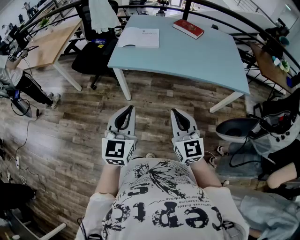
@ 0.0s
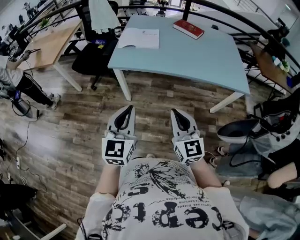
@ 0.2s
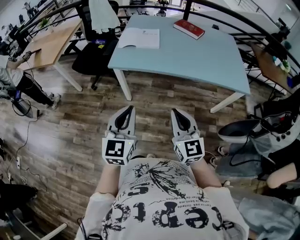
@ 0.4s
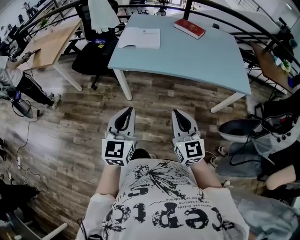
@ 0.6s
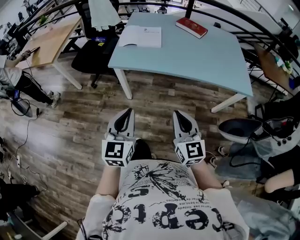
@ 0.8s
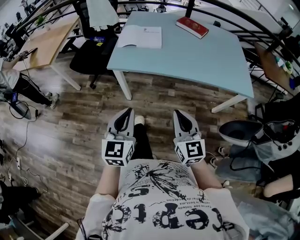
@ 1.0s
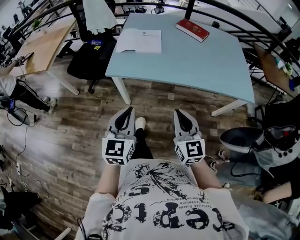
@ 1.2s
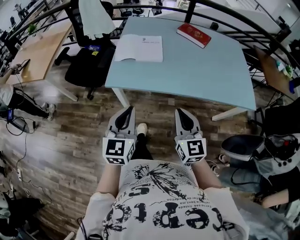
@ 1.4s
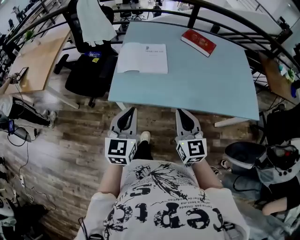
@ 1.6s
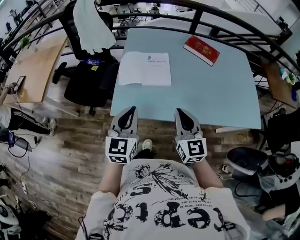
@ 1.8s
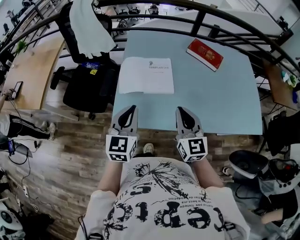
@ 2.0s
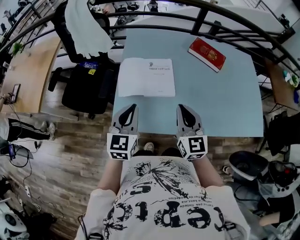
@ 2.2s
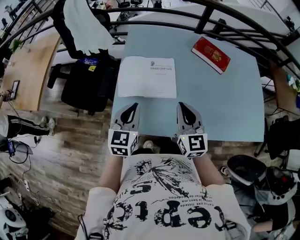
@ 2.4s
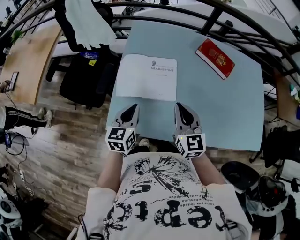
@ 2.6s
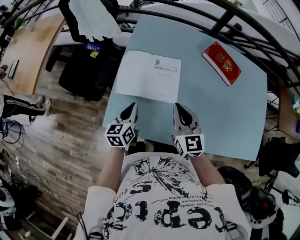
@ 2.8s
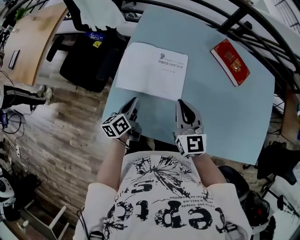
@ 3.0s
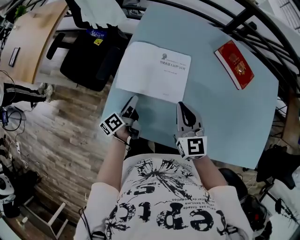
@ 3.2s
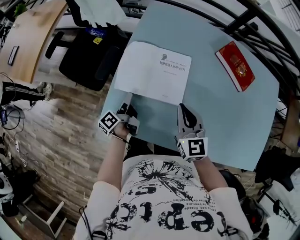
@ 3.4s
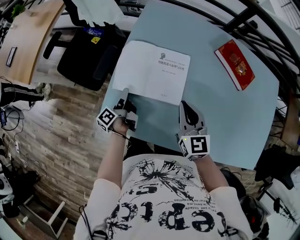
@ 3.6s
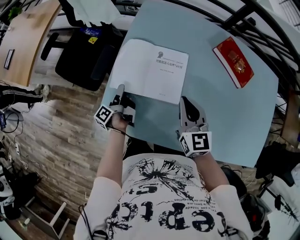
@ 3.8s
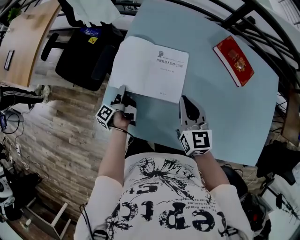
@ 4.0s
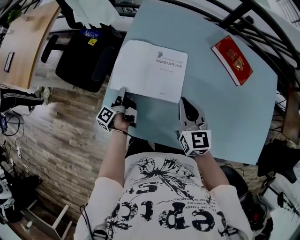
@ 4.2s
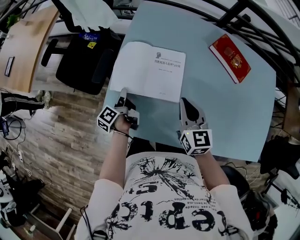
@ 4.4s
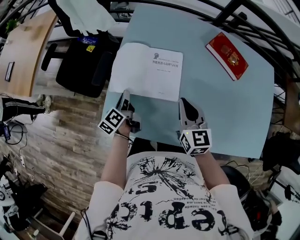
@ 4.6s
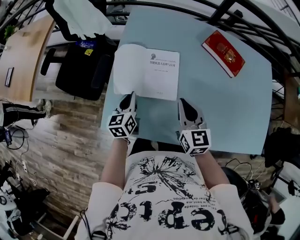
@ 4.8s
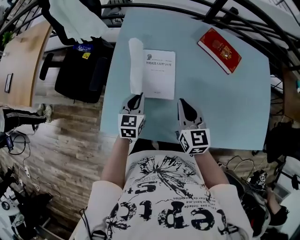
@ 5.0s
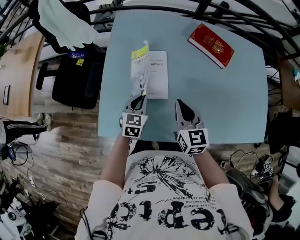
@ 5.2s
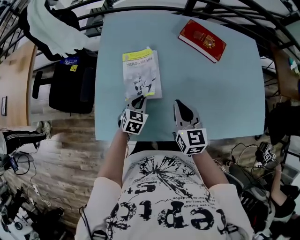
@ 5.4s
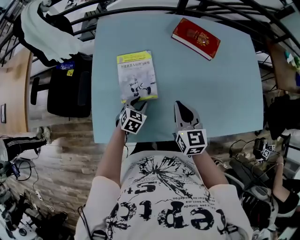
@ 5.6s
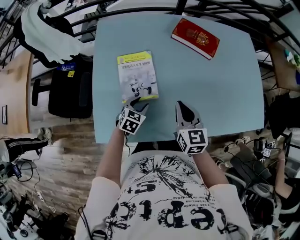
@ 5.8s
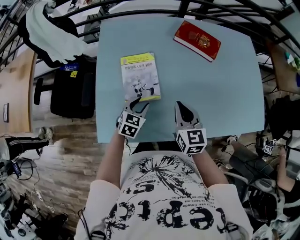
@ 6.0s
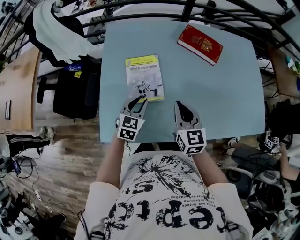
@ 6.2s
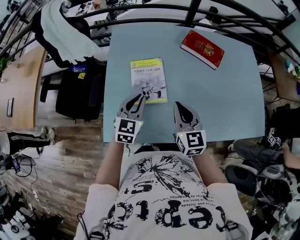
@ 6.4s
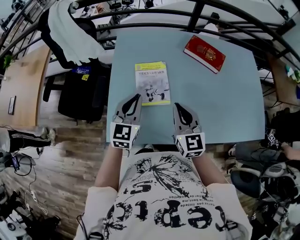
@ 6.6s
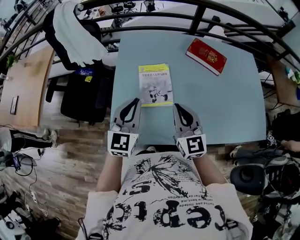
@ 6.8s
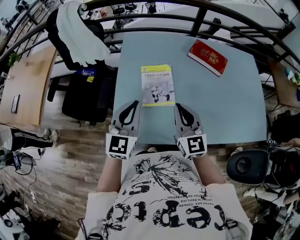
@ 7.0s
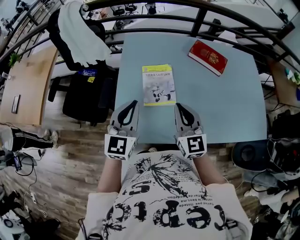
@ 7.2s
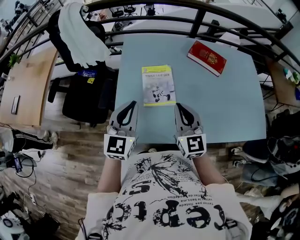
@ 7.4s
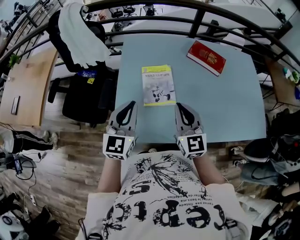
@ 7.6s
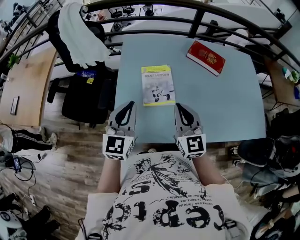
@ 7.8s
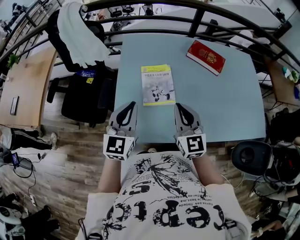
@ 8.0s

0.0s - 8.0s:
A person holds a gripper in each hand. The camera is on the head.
0.0s - 1.6s: The two grippers go approximately 30 cm forward.
1.6s - 3.2s: The right gripper shifts approximately 35 cm forward; the left gripper is displaced forward and downward by some 40 cm, twists some 70 degrees counterclockwise, seen from behind, and opens.
3.2s - 4.8s: The left gripper moves approximately 5 cm, rotates around the line of its fingers by about 50 degrees, clockwise from behind, and closes.
4.8s - 6.4s: The right gripper reaches roughly 10 cm to the right, then returns. The left gripper travels upward and to the right by about 15 cm, changes its angle by about 40 degrees, and opens, then closes once more.
6.4s - 8.0s: The right gripper is displaced to the left and upward by approximately 10 cm. The left gripper travels upward, to the left and backward by about 15 cm.

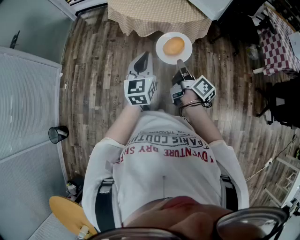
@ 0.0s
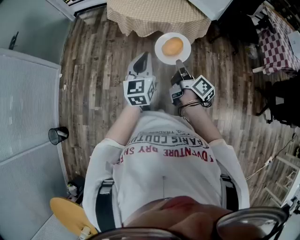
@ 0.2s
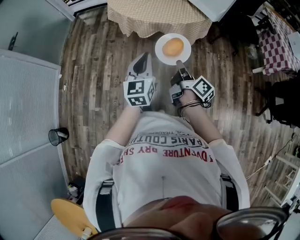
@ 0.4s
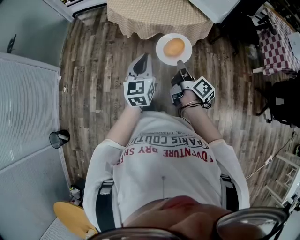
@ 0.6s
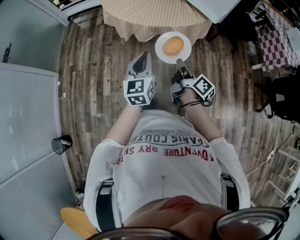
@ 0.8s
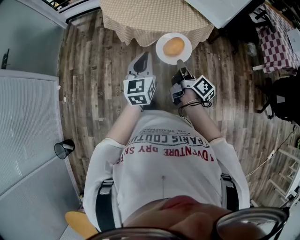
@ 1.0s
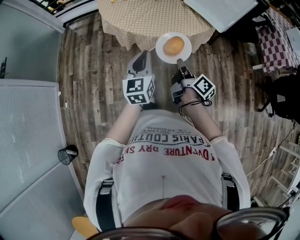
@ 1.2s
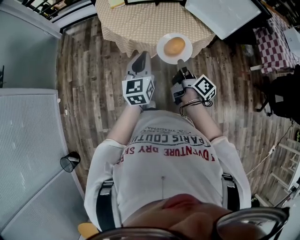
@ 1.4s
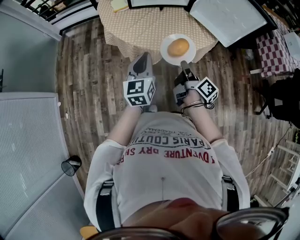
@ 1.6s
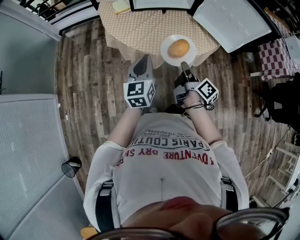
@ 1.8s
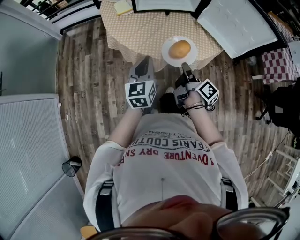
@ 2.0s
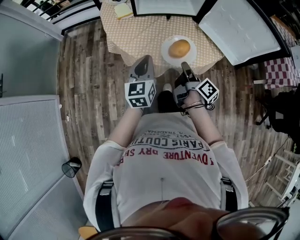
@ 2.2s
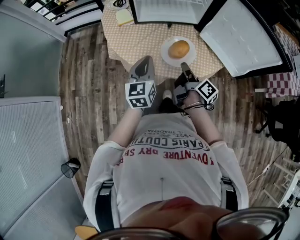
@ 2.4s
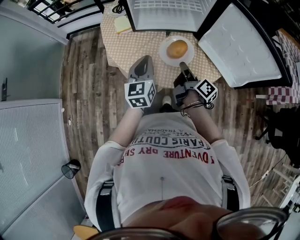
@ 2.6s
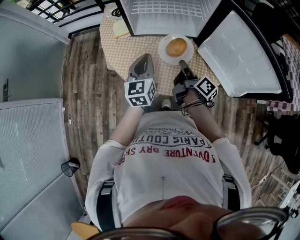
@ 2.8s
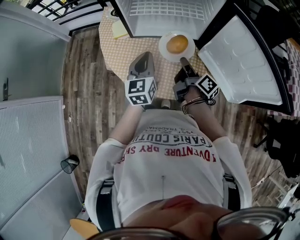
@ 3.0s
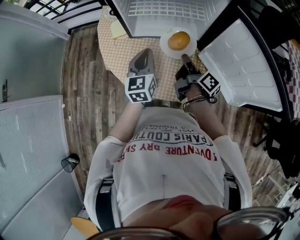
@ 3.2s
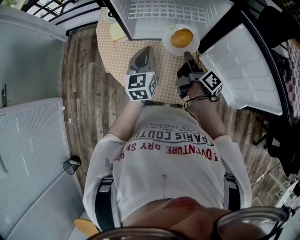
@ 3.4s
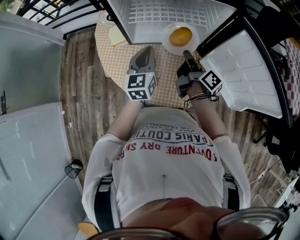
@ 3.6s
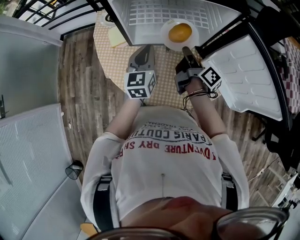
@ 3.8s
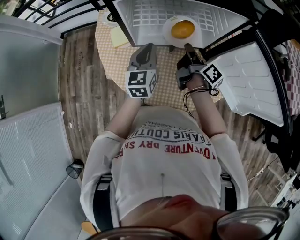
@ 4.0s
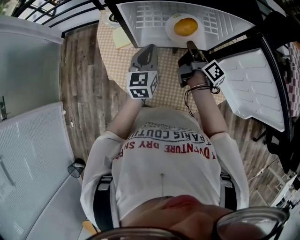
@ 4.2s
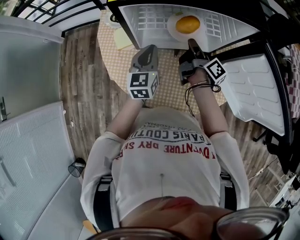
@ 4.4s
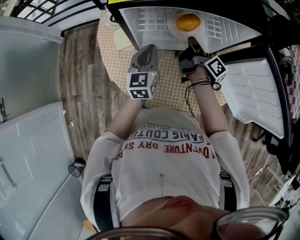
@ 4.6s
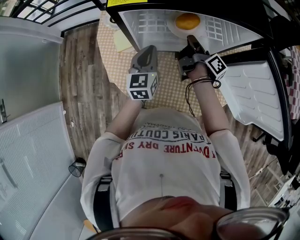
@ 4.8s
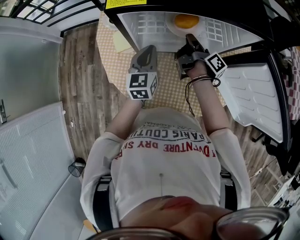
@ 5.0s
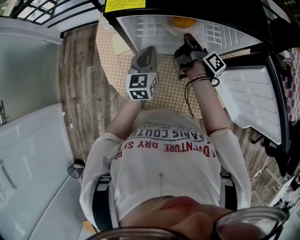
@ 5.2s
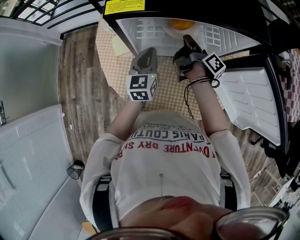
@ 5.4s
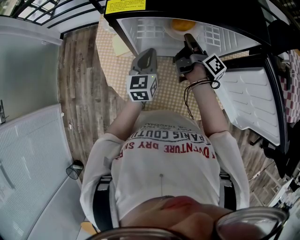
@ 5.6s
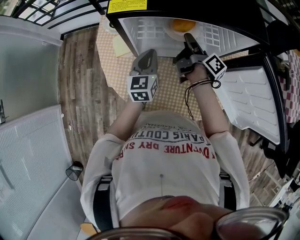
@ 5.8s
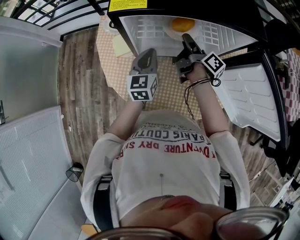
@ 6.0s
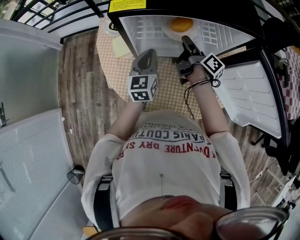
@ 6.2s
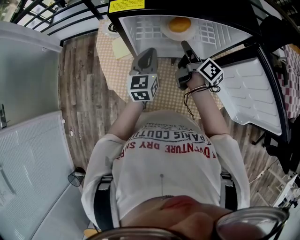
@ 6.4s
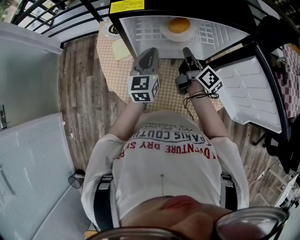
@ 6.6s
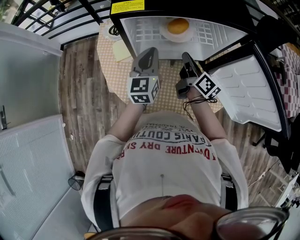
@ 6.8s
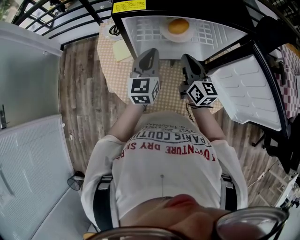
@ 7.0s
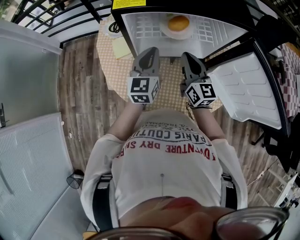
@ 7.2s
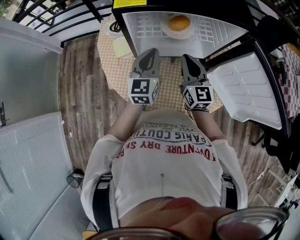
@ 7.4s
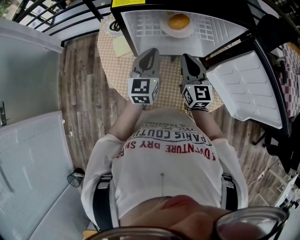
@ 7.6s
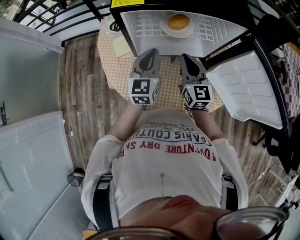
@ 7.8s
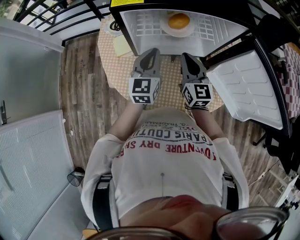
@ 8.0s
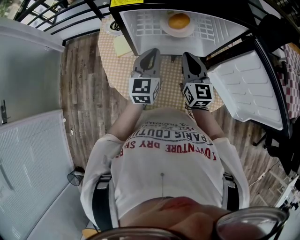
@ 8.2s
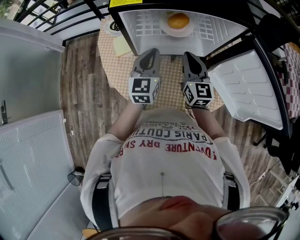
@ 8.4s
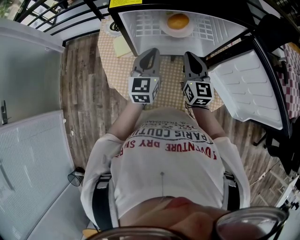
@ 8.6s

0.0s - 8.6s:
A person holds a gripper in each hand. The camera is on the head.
0.0s - 1.4s: The grippers both shift forward and to the left by some 25 cm.
1.4s - 2.8s: The two grippers go some 30 cm forward.
2.8s - 4.4s: Both grippers move forward, about 20 cm.
4.4s - 5.8s: The right gripper ends up some 5 cm from where it was, and opens its fingers.
5.8s - 7.2s: The right gripper is displaced backward and upward by about 10 cm, rotates around the line of its fingers by about 70 degrees, counterclockwise from behind, and closes its fingers, while the left gripper moves upward, approximately 5 cm.
7.2s - 8.6s: The grippers stay close to where they were, moving slightly.

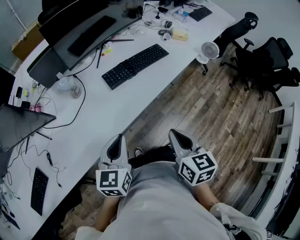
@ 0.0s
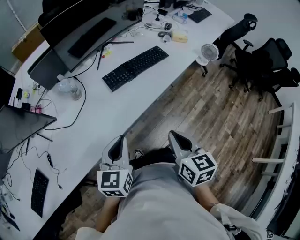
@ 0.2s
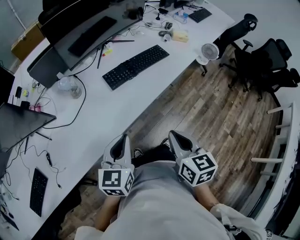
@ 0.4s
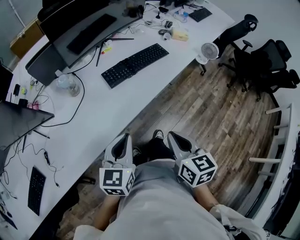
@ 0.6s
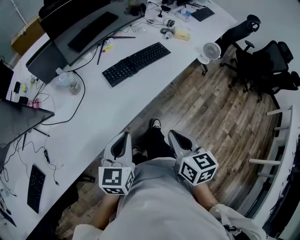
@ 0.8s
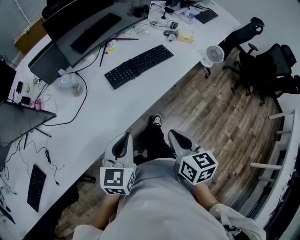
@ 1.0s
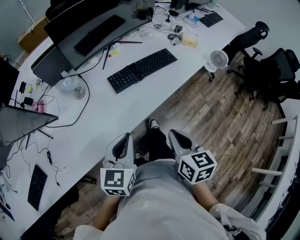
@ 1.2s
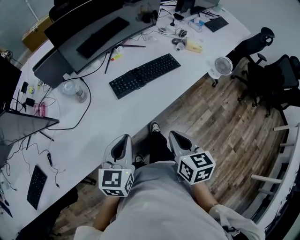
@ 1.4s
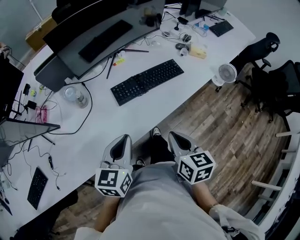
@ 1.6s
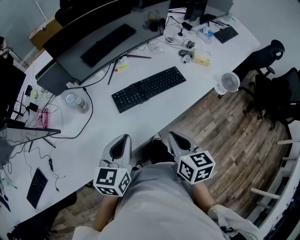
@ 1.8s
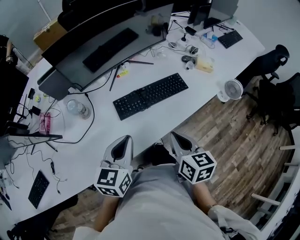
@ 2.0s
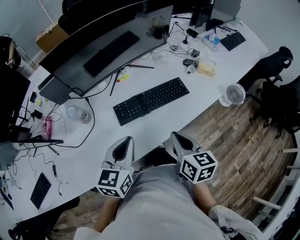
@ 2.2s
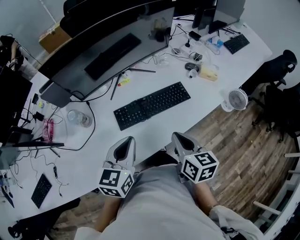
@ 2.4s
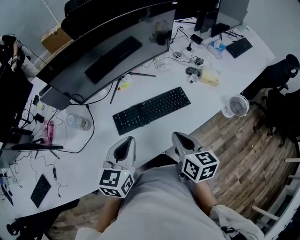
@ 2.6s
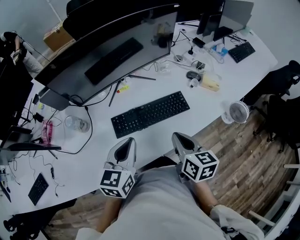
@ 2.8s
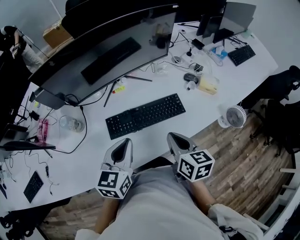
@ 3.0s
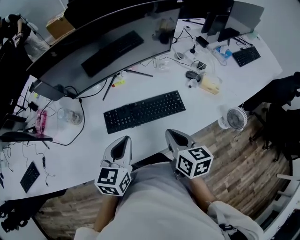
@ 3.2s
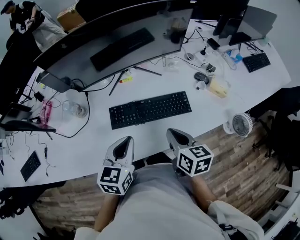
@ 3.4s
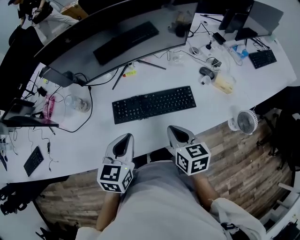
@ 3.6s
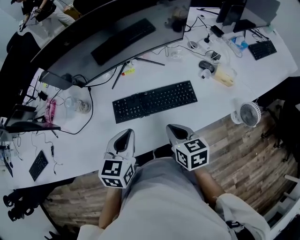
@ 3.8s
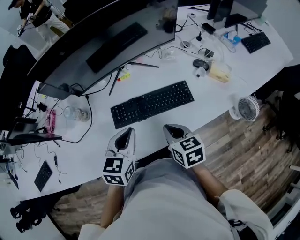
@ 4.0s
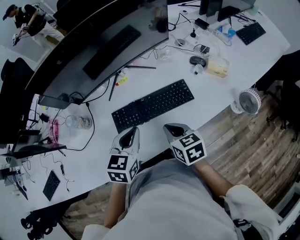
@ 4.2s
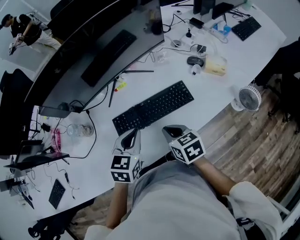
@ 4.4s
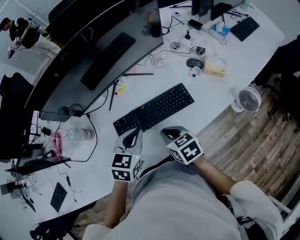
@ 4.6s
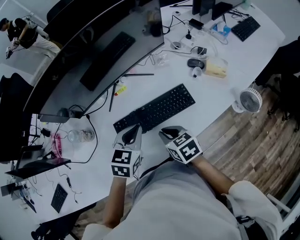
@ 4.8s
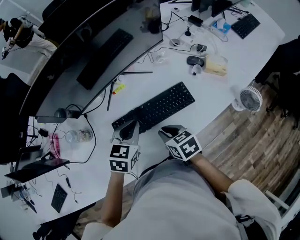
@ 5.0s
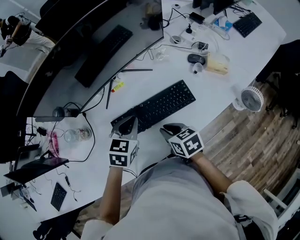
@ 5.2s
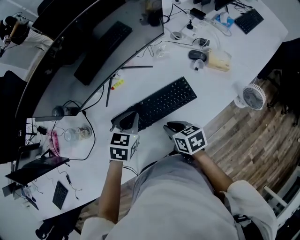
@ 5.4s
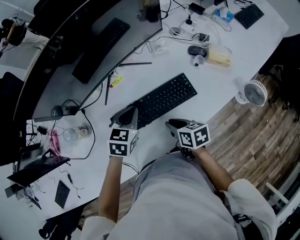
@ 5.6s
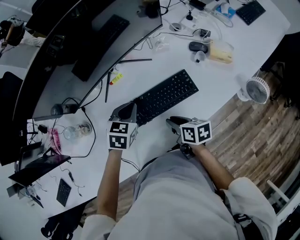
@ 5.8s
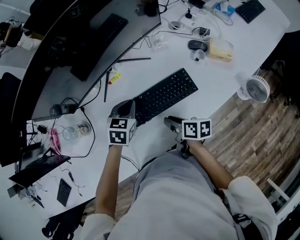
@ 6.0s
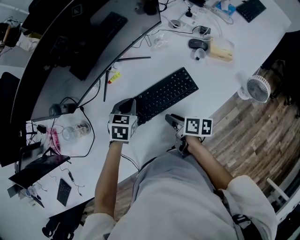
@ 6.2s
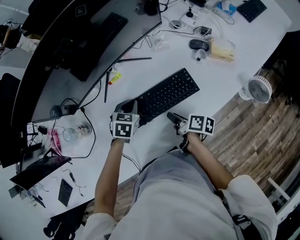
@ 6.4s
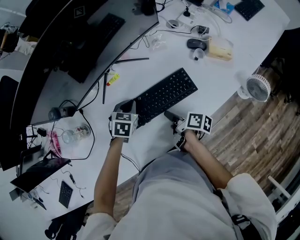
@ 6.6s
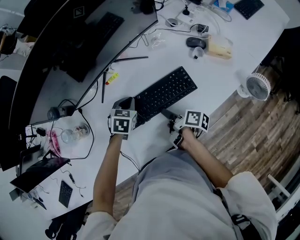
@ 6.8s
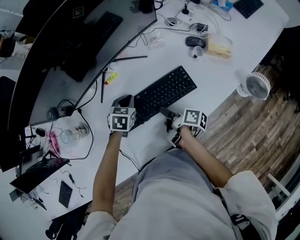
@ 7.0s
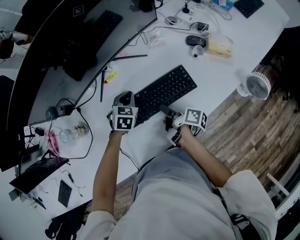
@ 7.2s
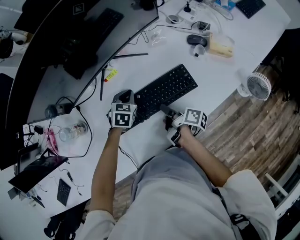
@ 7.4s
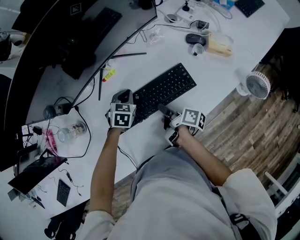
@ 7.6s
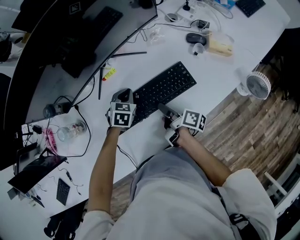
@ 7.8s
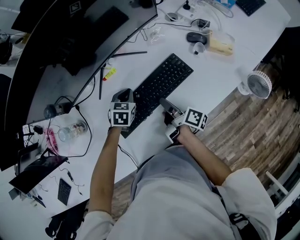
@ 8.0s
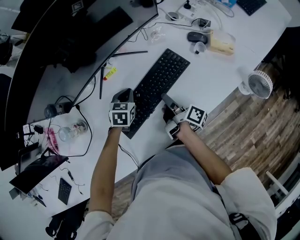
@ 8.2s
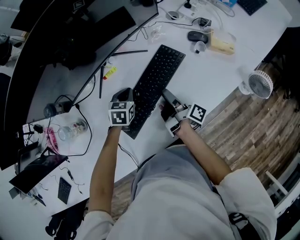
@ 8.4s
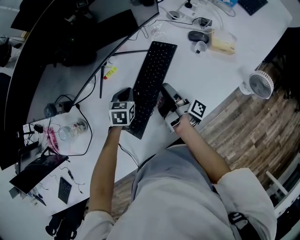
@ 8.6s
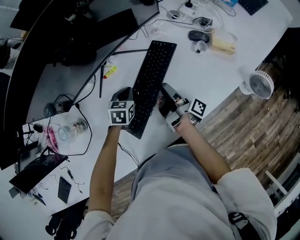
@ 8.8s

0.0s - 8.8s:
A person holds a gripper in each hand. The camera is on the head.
0.0s - 1.4s: The grippers both shift forward by approximately 5 cm.
1.4s - 3.0s: The grippers both shift forward and to the right by roughly 25 cm.
3.0s - 4.4s: The two grippers go approximately 10 cm downward.
4.4s - 5.8s: The left gripper moves forward and downward, approximately 15 cm; the right gripper travels downward by about 10 cm, and rotates some 30 degrees.
5.8s - 7.4s: The right gripper ends up about 5 cm from where it was, and rotates around the line of its fingers by some 50 degrees, clockwise from behind. Meanwhile the left gripper heads downward and forward, covering about 10 cm.
7.4s - 8.8s: The right gripper goes about 5 cm forward, and swivels roughly 30 degrees.
